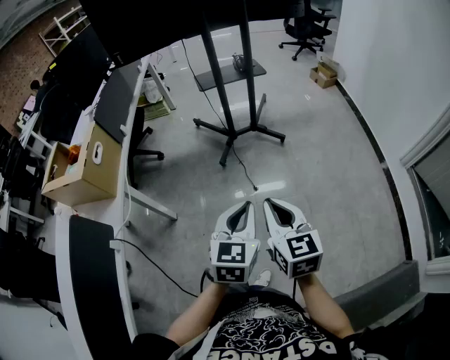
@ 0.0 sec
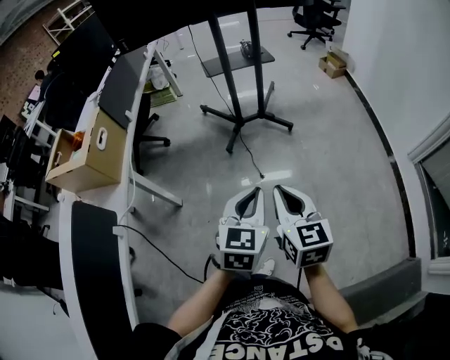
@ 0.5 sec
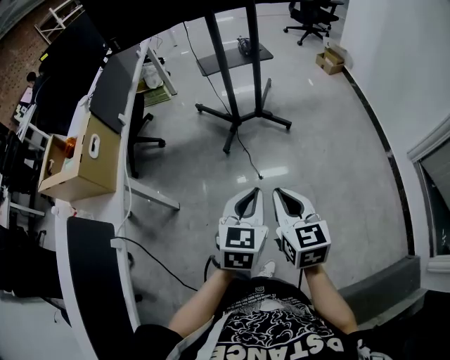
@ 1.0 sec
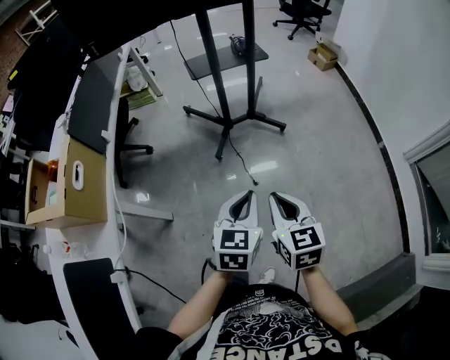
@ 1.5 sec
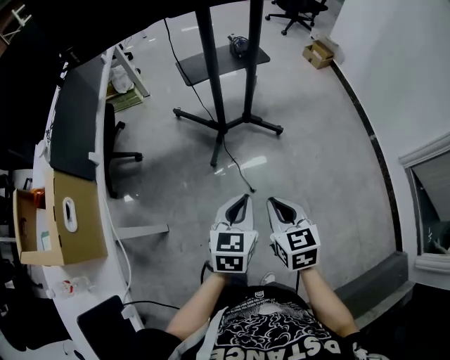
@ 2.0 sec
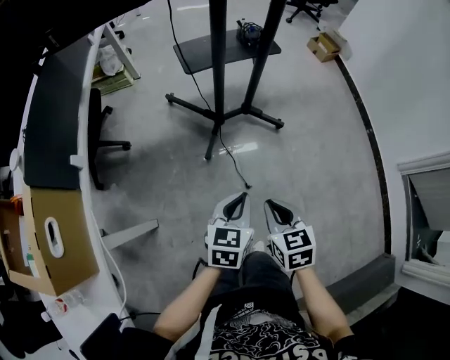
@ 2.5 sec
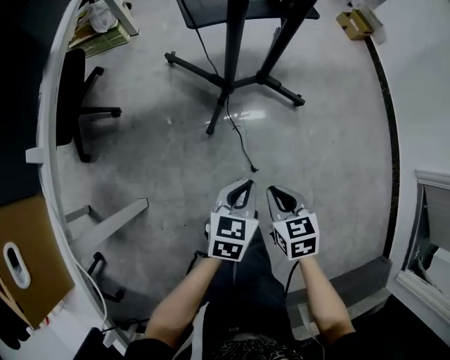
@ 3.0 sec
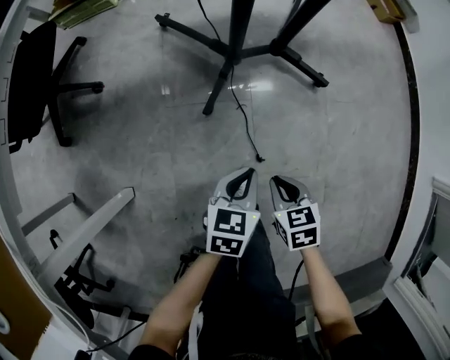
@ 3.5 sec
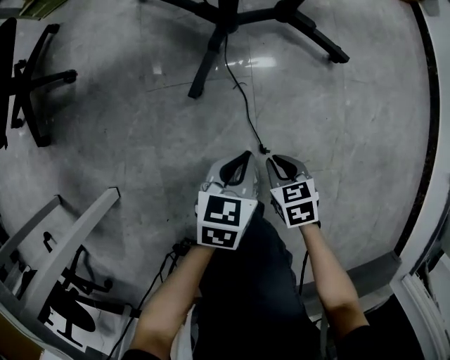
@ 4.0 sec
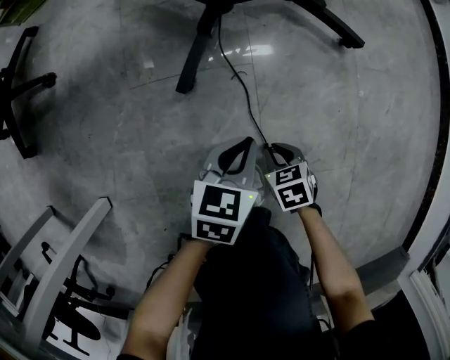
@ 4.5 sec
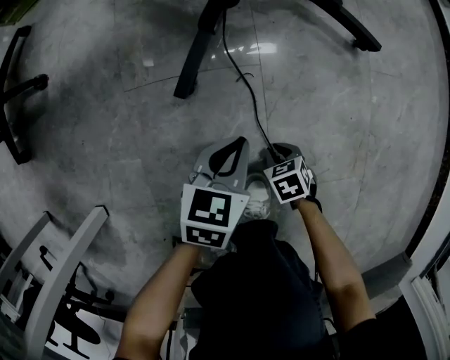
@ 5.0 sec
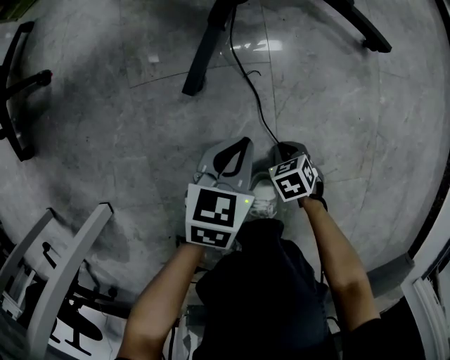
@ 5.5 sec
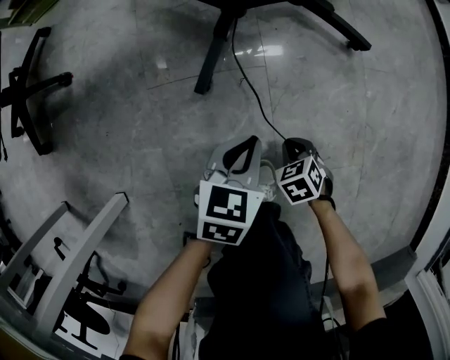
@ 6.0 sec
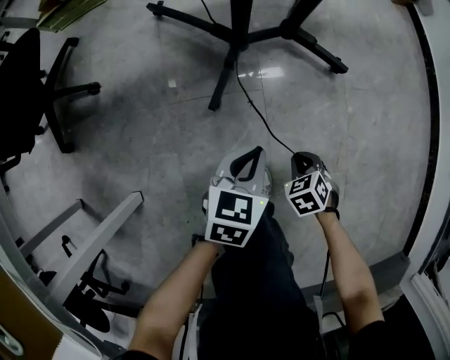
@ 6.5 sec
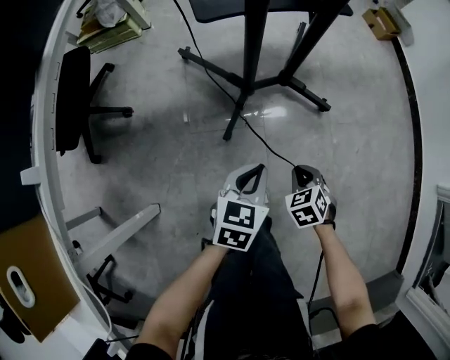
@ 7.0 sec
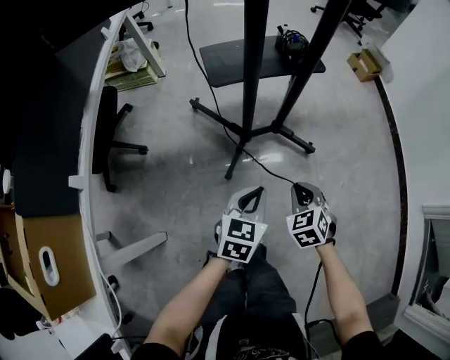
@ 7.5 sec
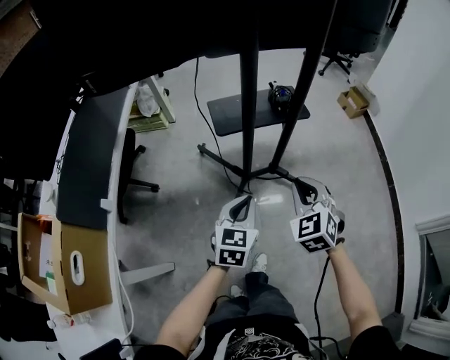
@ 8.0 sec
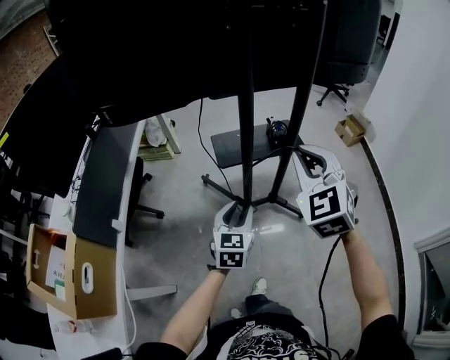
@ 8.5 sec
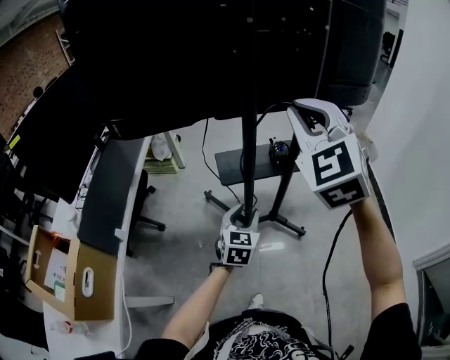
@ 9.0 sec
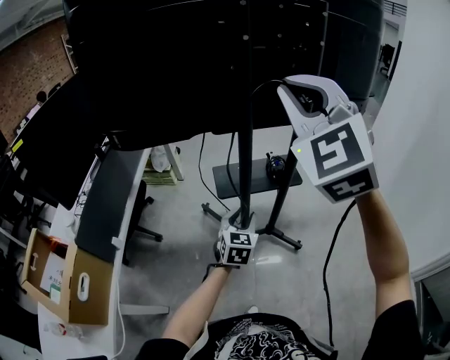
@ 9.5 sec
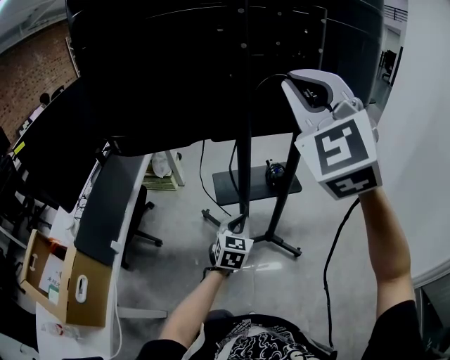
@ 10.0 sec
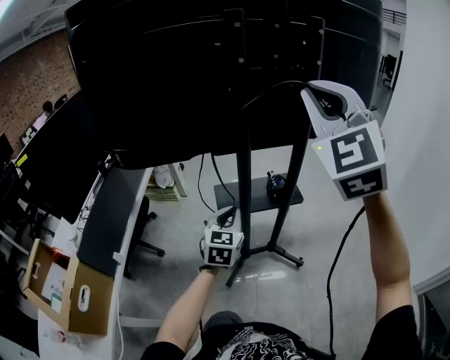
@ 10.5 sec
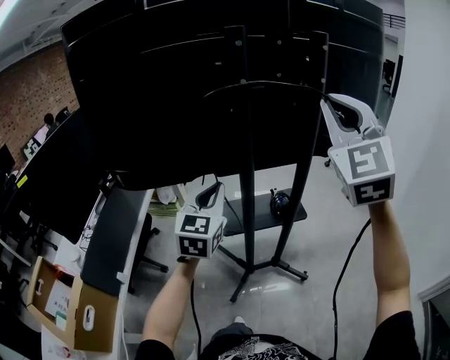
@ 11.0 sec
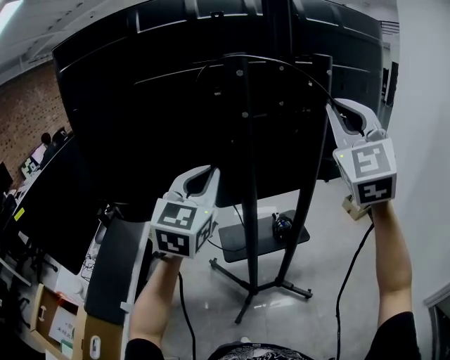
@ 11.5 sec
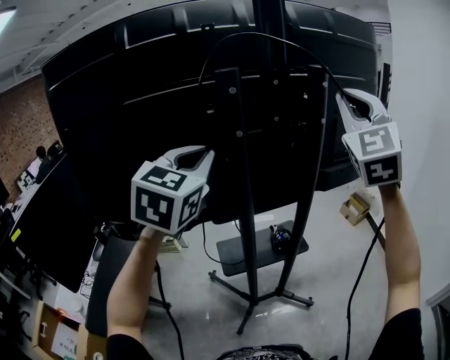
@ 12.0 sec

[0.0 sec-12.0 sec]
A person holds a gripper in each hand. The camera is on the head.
0.0 sec to 2.0 sec: Both grippers move forward and downward, about 25 cm.
2.0 sec to 4.0 sec: The grippers both shift downward by some 50 cm. The right gripper swivels roughly 30 degrees, while the left gripper changes its angle by roughly 20 degrees.
4.0 sec to 6.0 sec: The right gripper moves downward, some 10 cm; the left gripper travels downward and back again, roughly 15 cm each way.
6.0 sec to 8.0 sec: Both grippers move upward, roughly 60 cm. The left gripper changes its angle by approximately 30 degrees, while the right gripper angles its fingers upward, by roughly 40 degrees.
8.0 sec to 10.0 sec: The left gripper travels forward and upward by approximately 15 cm, and opens, then closes again, while the right gripper moves upward, approximately 50 cm, and angles its fingers upward, by about 40 degrees.
10.0 sec to 12.0 sec: The left gripper heads upward, covering some 40 cm, and turns by roughly 20 degrees, while the right gripper goes some 25 cm forward, to the right and upward, and turns by approximately 20 degrees.

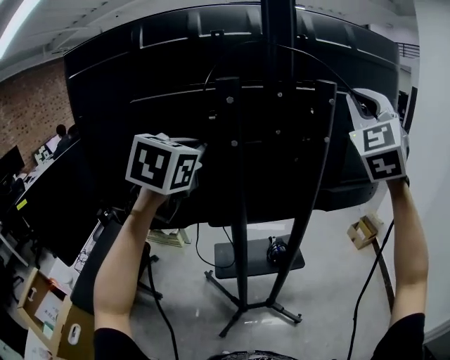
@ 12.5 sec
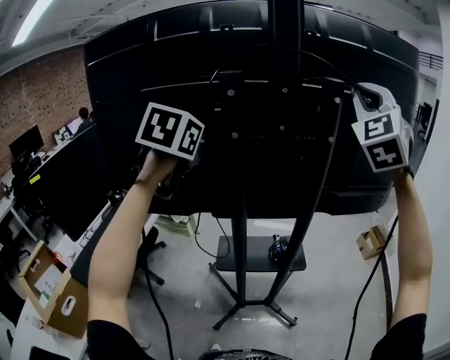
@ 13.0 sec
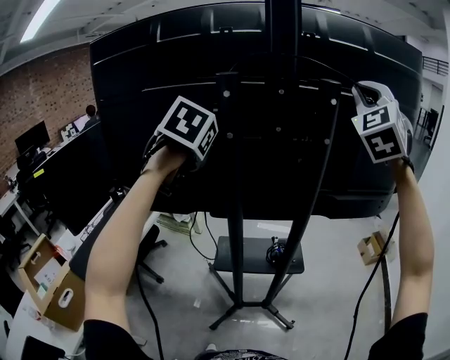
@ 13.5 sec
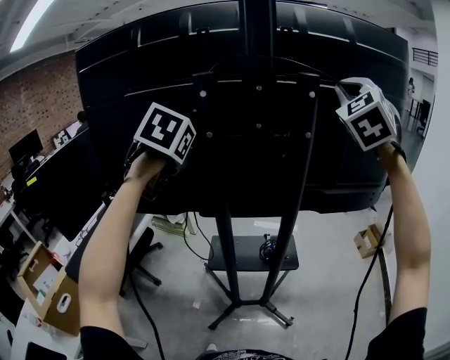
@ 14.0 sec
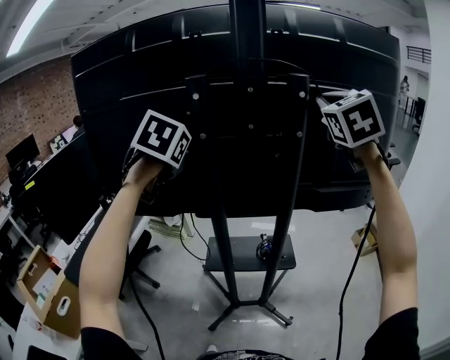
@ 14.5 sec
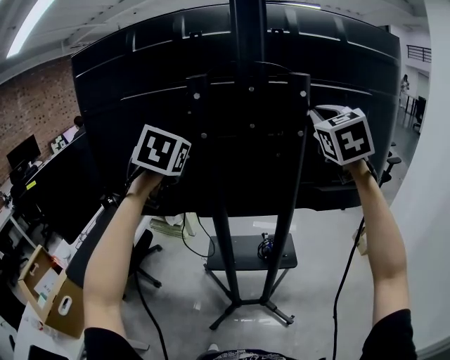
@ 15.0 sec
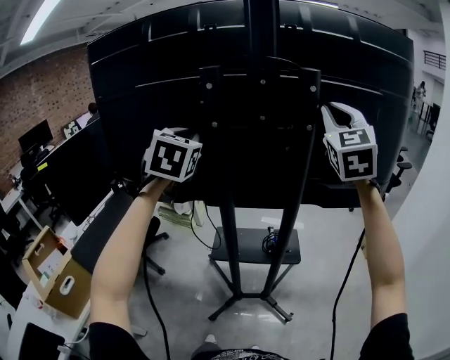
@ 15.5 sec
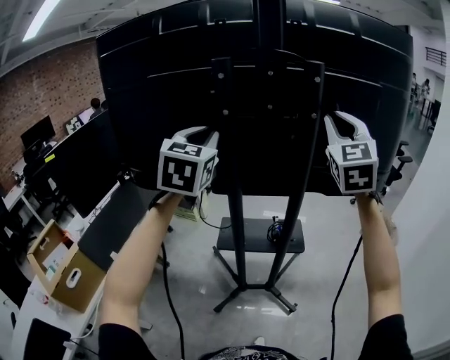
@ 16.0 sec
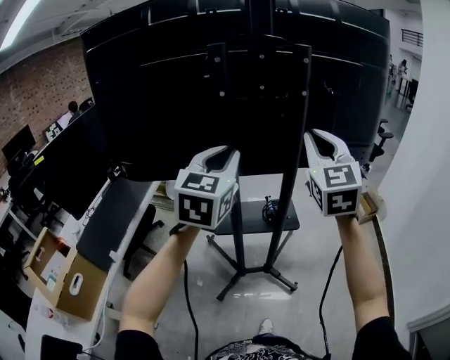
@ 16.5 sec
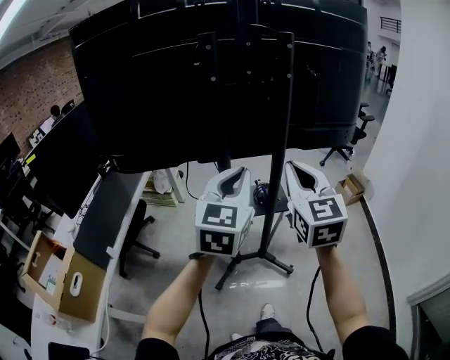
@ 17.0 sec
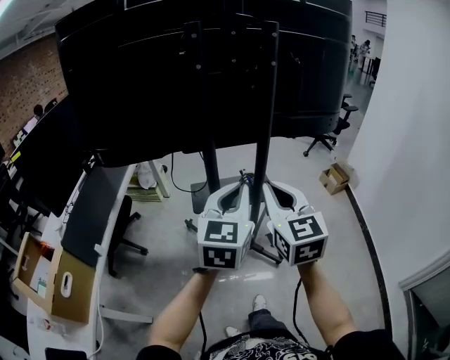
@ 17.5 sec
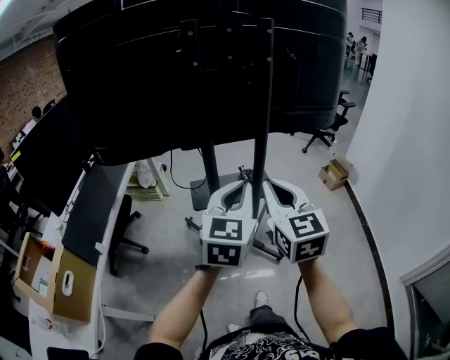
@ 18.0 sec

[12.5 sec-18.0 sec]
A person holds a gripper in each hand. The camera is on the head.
12.5 sec to 14.5 sec: The right gripper shifts approximately 5 cm forward, and turns by approximately 30 degrees. Meanwhile the left gripper rotates about 30 degrees.
14.5 sec to 16.0 sec: The left gripper heads backward, covering some 10 cm, and changes its angle by some 30 degrees, while the right gripper shifts approximately 10 cm downward and backward.
16.0 sec to 18.0 sec: The right gripper goes approximately 35 cm backward and downward, and changes its angle by approximately 30 degrees. The left gripper moves backward, downward and to the right, some 30 cm, and swivels approximately 30 degrees.

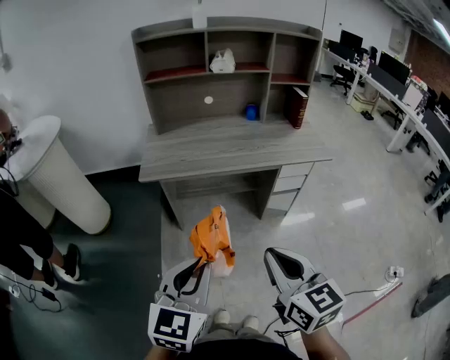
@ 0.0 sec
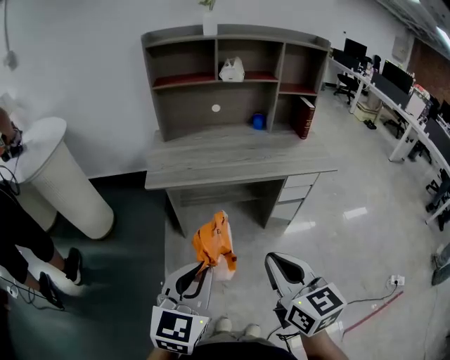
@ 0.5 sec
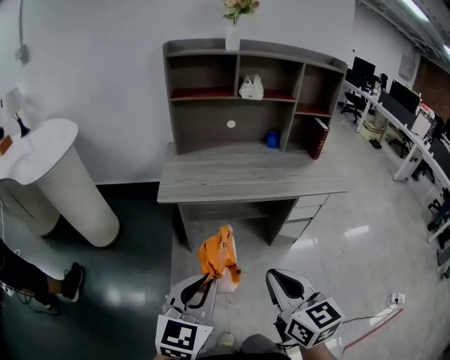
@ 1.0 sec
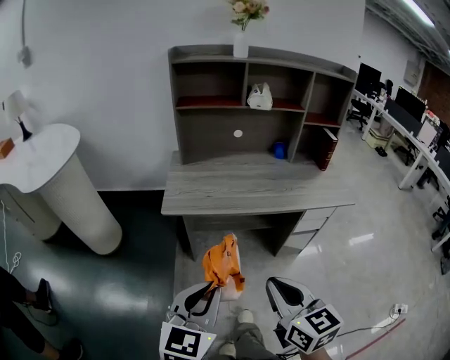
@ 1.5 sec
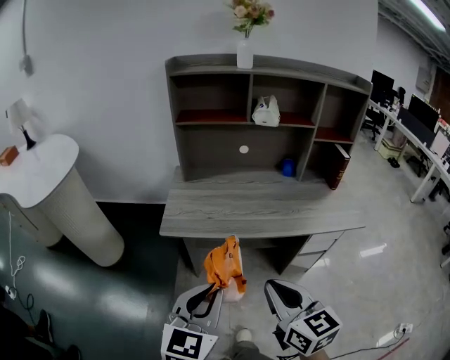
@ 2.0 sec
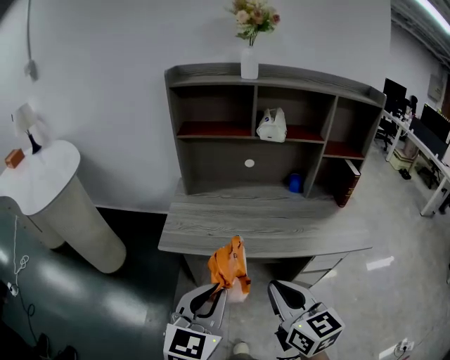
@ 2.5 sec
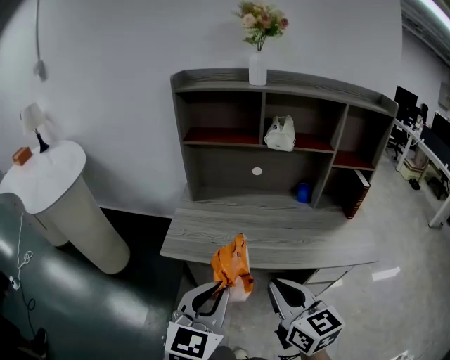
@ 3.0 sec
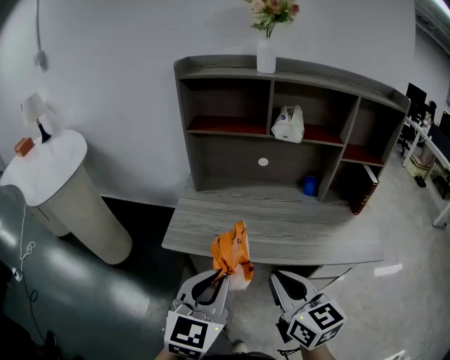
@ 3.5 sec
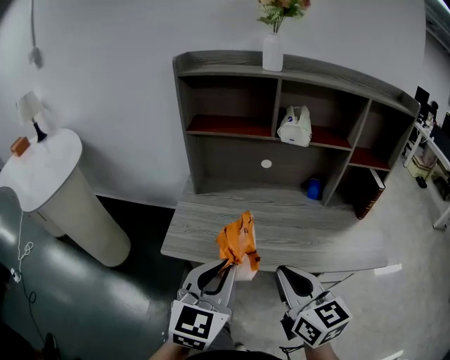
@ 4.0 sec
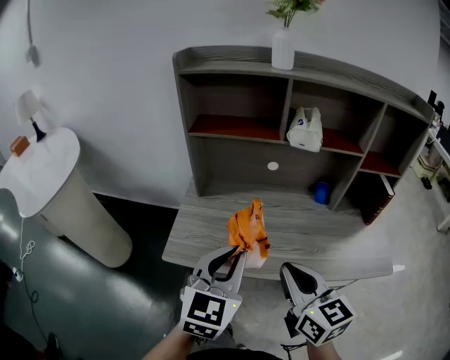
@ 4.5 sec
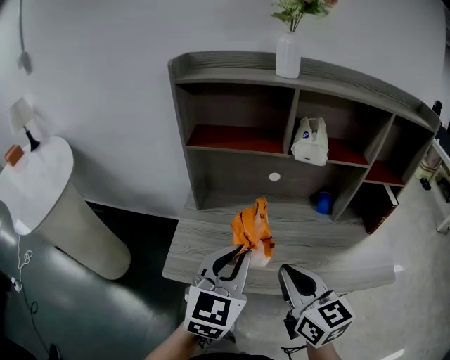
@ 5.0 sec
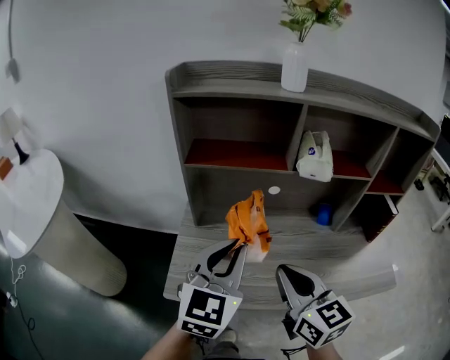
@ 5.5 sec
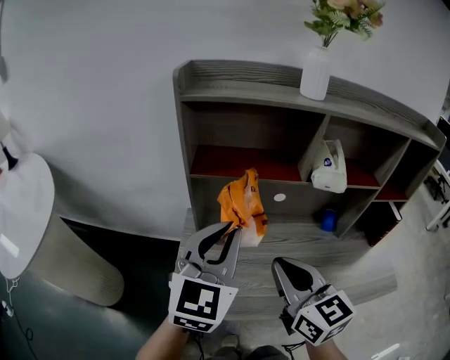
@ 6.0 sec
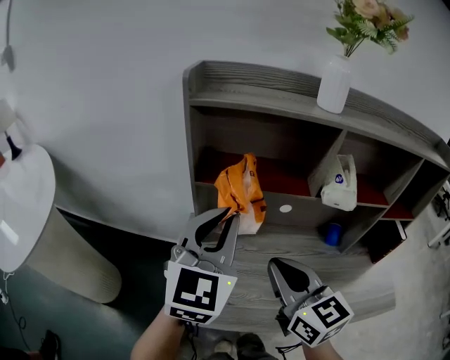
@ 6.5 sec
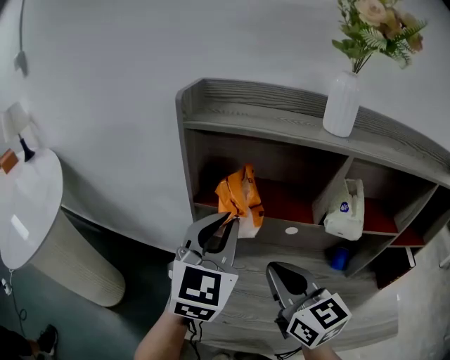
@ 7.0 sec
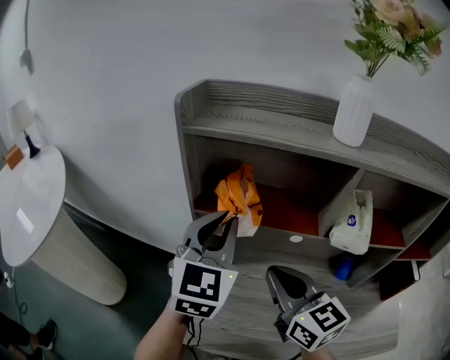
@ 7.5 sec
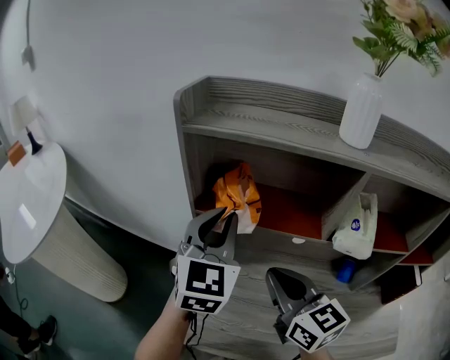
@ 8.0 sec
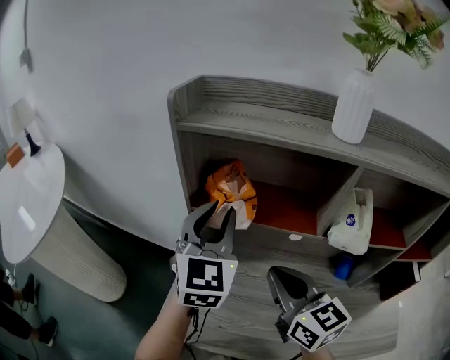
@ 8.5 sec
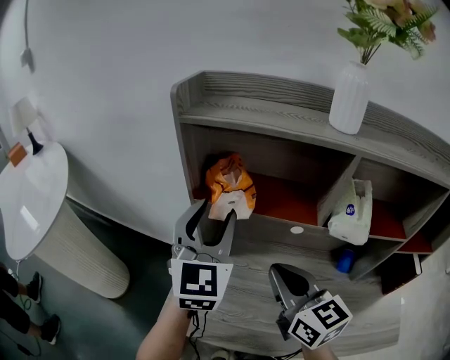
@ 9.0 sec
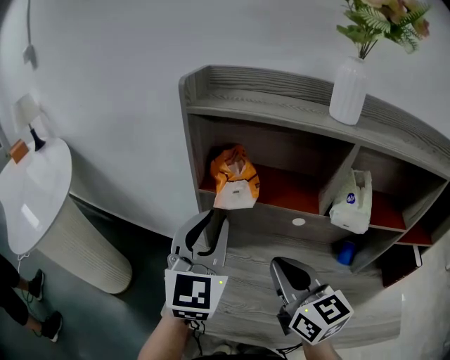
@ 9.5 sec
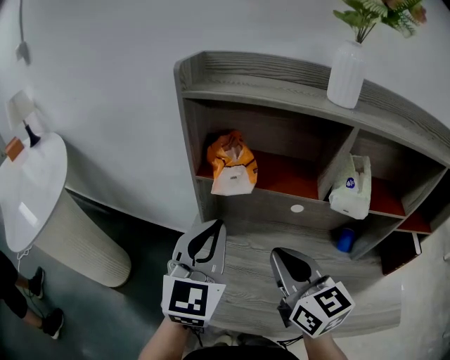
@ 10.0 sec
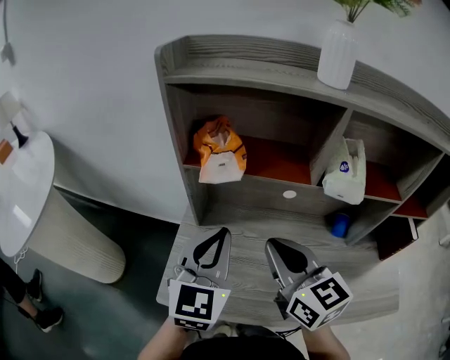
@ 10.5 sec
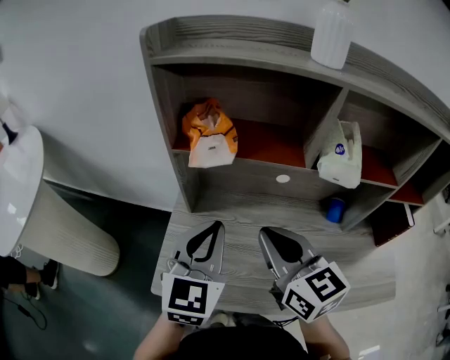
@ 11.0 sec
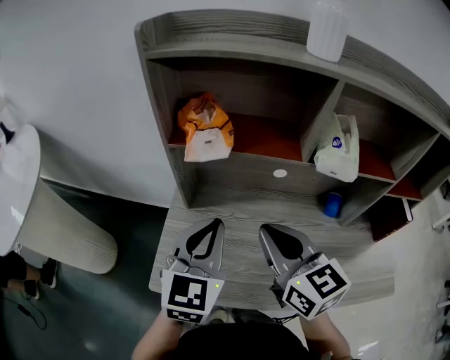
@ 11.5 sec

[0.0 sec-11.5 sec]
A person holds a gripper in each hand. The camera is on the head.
0.0 sec to 2.0 sec: The two grippers go roughly 20 cm forward.
2.0 sec to 4.0 sec: The grippers both shift forward by approximately 20 cm.
4.0 sec to 6.0 sec: The left gripper goes some 25 cm forward; the right gripper travels forward and to the left by some 25 cm.
6.0 sec to 7.5 sec: The two grippers go some 15 cm forward.
7.5 sec to 9.5 sec: The left gripper changes place by roughly 5 cm, and opens, then closes once more.
9.5 sec to 11.5 sec: The left gripper moves downward and backward, some 10 cm, and closes up.
